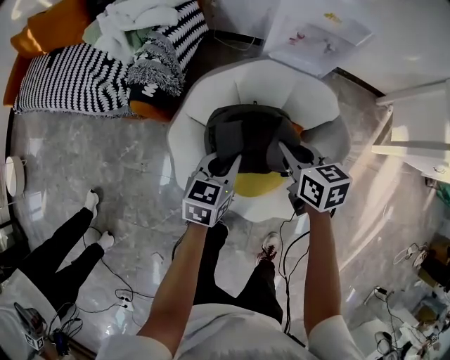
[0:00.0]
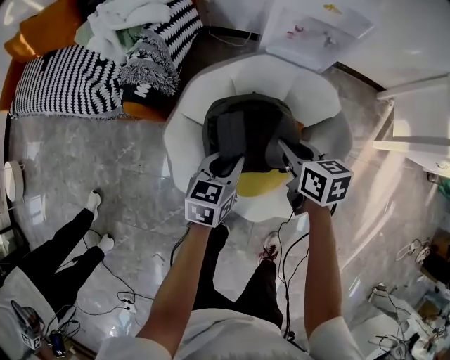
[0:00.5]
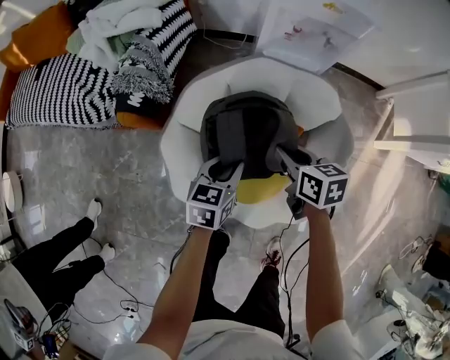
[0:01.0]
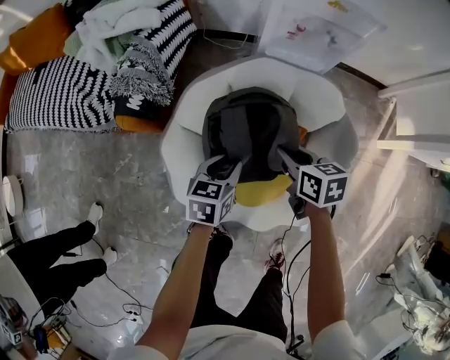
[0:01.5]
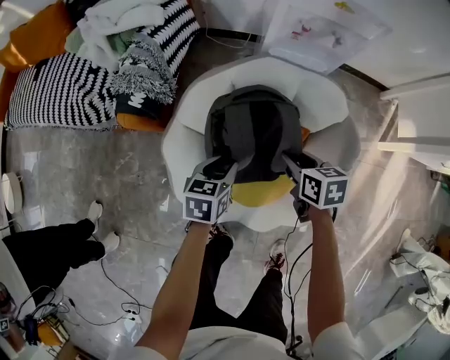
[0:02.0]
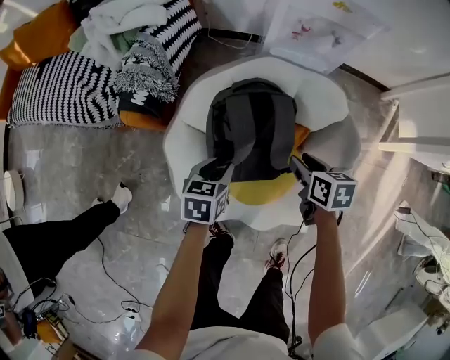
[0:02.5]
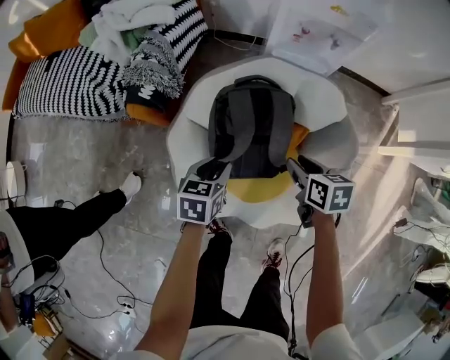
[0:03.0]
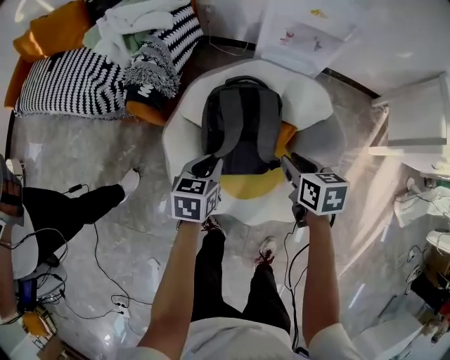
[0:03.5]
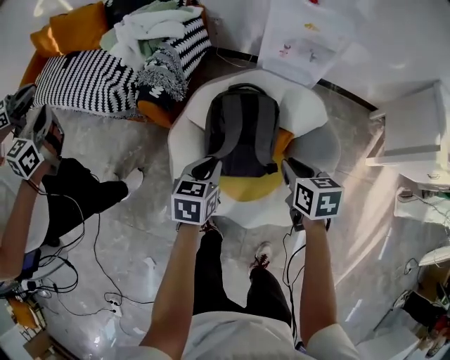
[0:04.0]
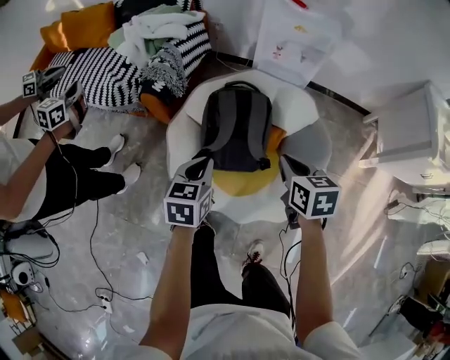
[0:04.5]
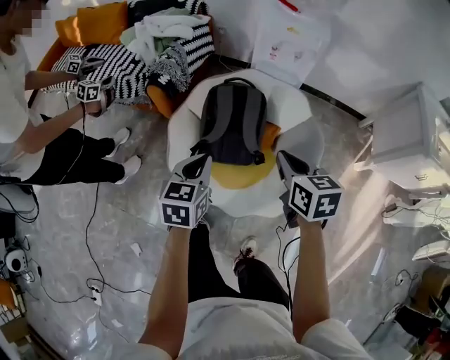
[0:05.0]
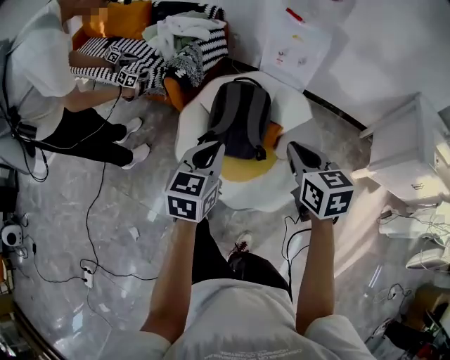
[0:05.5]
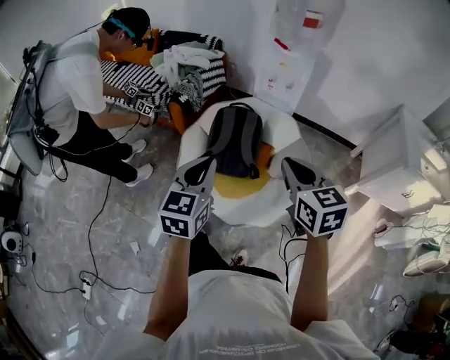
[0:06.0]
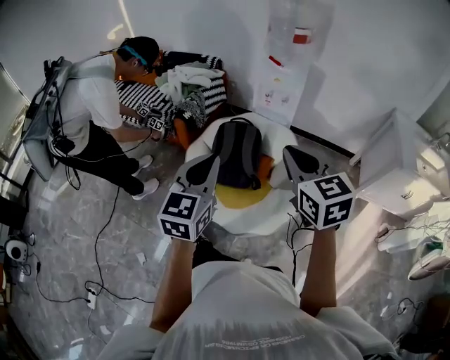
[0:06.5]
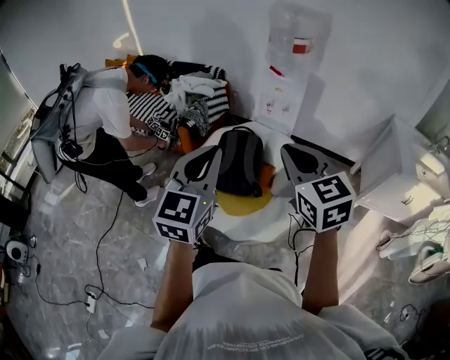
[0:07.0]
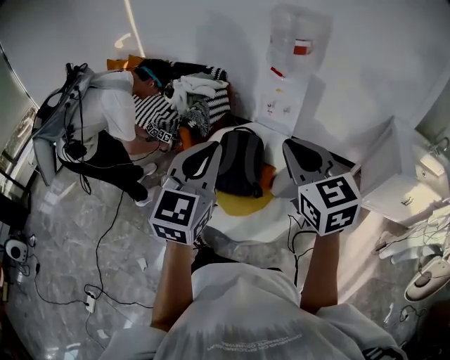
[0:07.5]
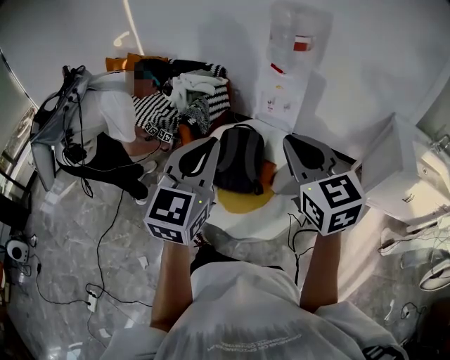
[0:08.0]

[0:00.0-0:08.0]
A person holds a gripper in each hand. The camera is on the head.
0:00.0 to 0:02.0: Both grippers move downward, roughly 10 cm. The right gripper opens its fingers. The left gripper opens its fingers.
0:02.0 to 0:04.0: Both grippers travel together upward and backward, approximately 15 cm. The left gripper closes.
0:04.0 to 0:06.0: The two grippers go approximately 40 cm upward and backward. The left gripper turns by approximately 30 degrees, while the right gripper rotates roughly 30 degrees.
0:06.0 to 0:08.0: Both grippers move upward, some 20 cm. The right gripper swivels about 20 degrees. The left gripper rotates about 20 degrees.

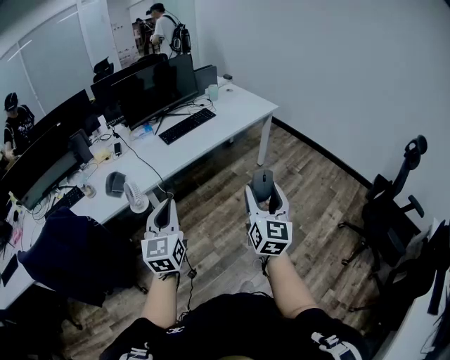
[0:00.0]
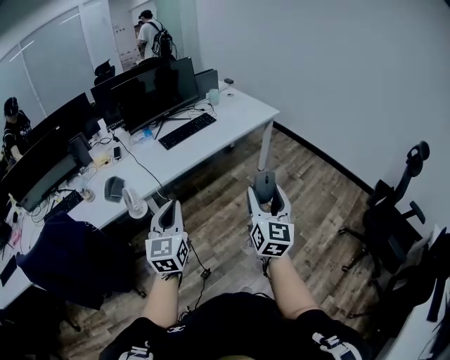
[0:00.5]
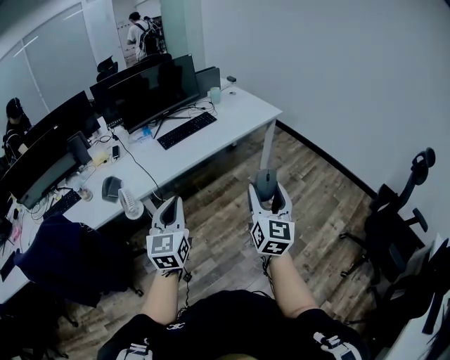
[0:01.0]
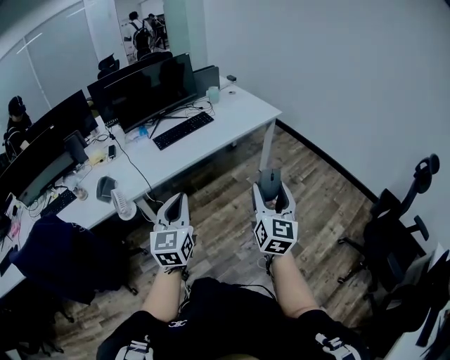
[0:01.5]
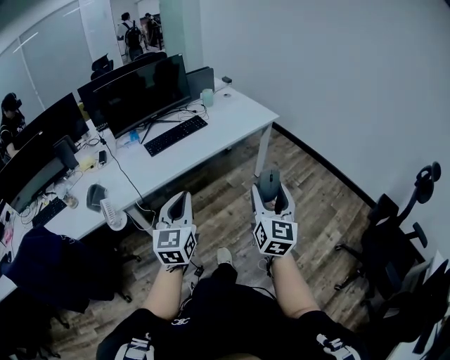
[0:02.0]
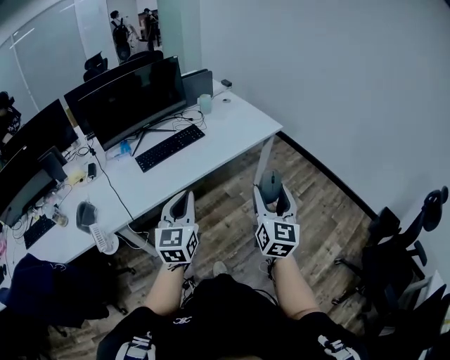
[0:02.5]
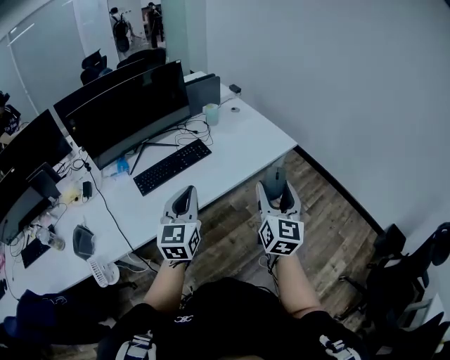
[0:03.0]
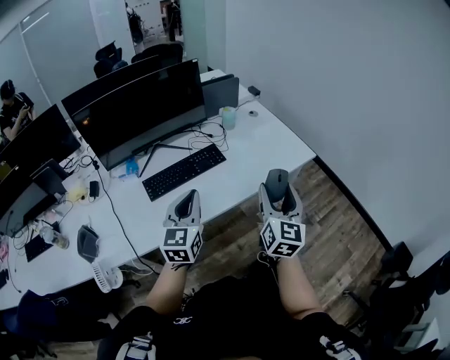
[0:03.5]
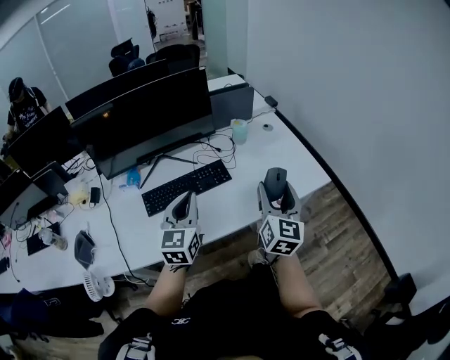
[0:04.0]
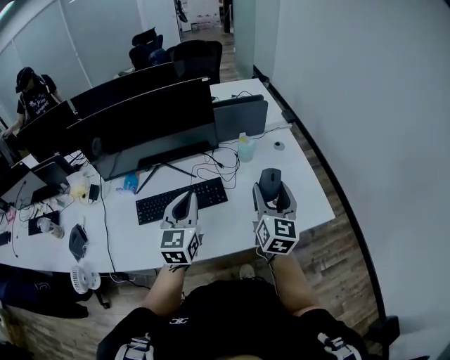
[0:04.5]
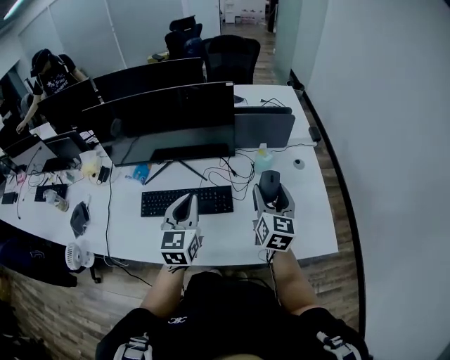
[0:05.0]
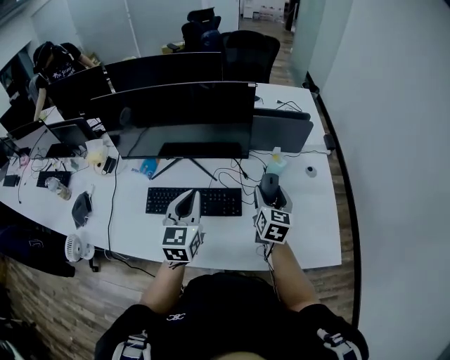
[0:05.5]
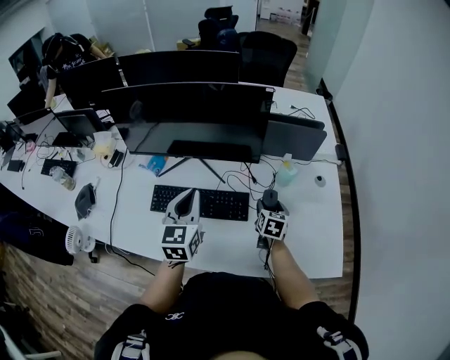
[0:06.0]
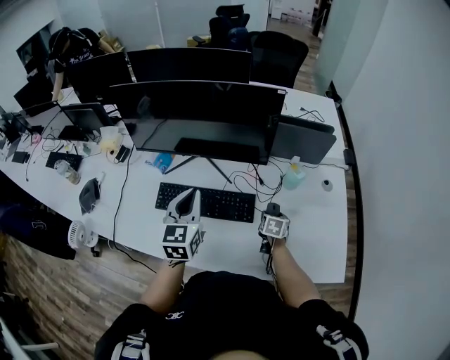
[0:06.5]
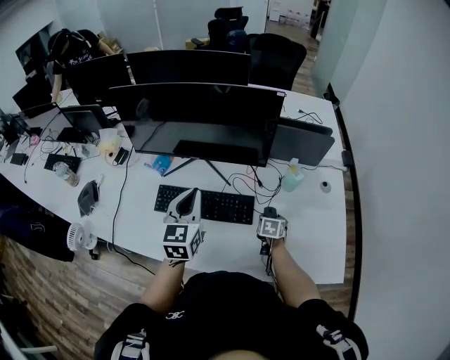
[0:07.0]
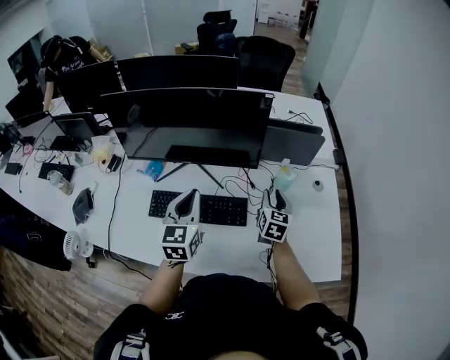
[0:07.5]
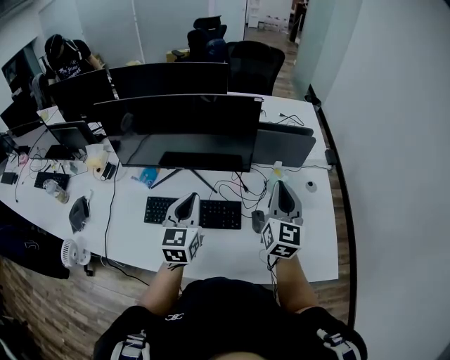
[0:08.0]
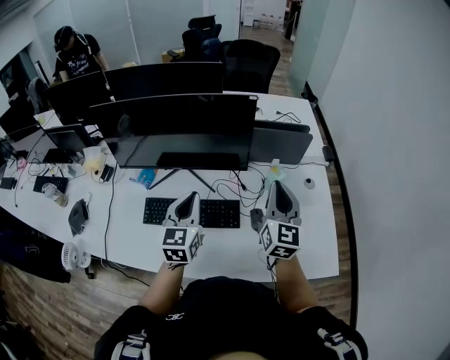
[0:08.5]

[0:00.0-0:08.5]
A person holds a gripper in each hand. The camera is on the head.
0:00.0 to 0:02.0: Both grippers travel together forward and to the right, about 25 cm.
0:02.0 to 0:04.0: Both grippers are carried forward, some 60 cm.
0:04.0 to 0:06.5: The left gripper moves about 20 cm, and rotates roughly 30 degrees; the right gripper ends up about 50 cm from where it was, and tilts its fingers some 50 degrees downward.
0:06.5 to 0:08.5: The right gripper travels upward by about 35 cm, tilts its fingers some 50 degrees upward, and closes up. The left gripper changes place by roughly 5 cm.

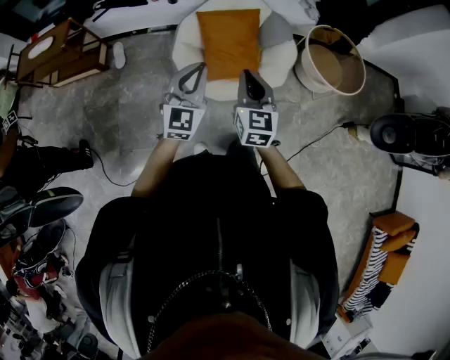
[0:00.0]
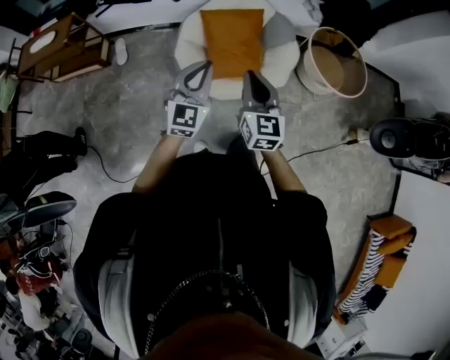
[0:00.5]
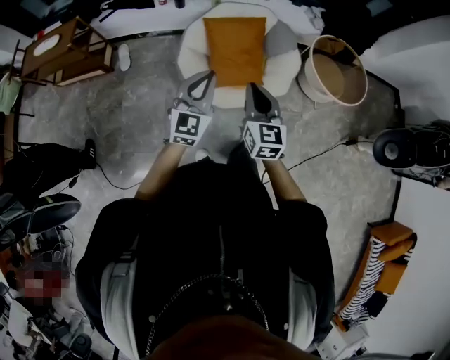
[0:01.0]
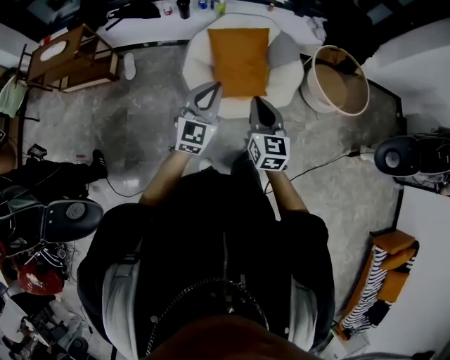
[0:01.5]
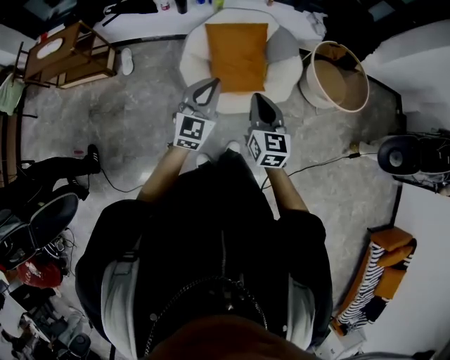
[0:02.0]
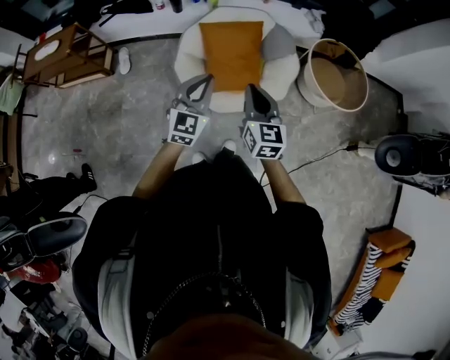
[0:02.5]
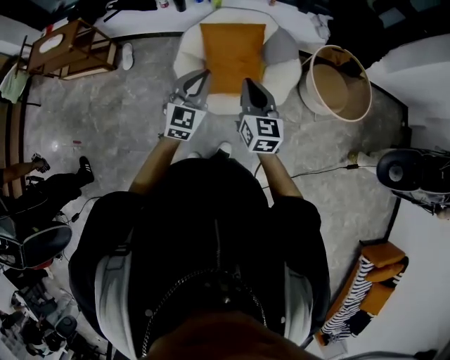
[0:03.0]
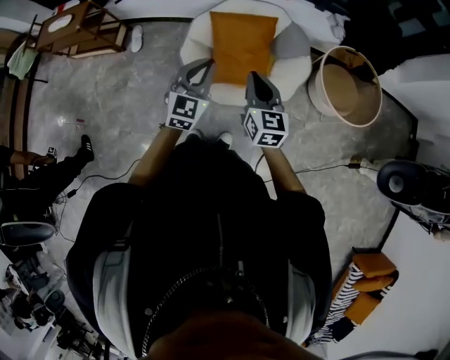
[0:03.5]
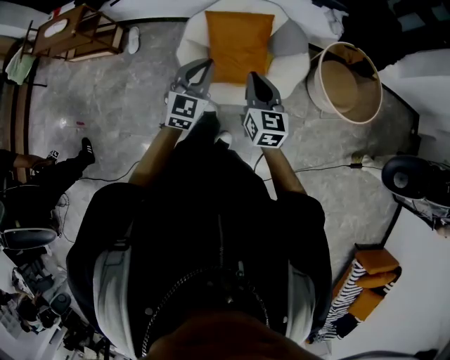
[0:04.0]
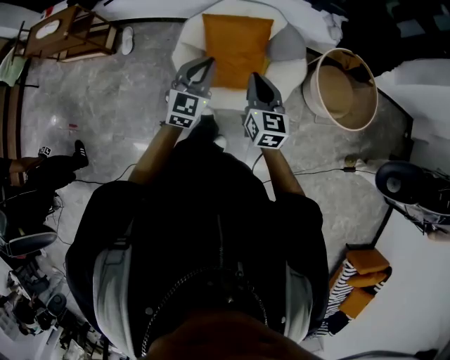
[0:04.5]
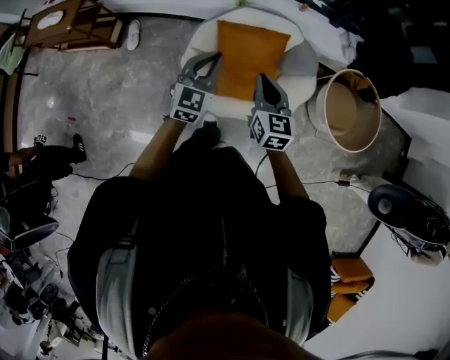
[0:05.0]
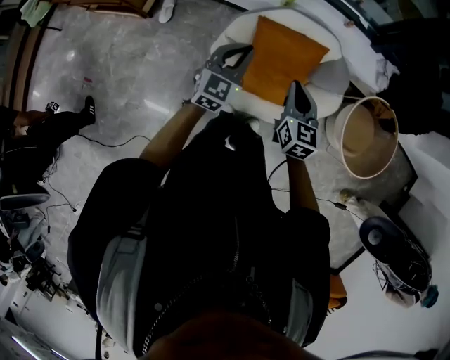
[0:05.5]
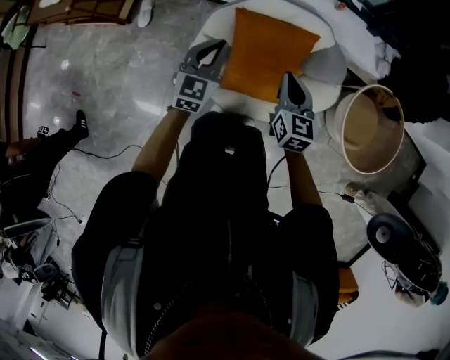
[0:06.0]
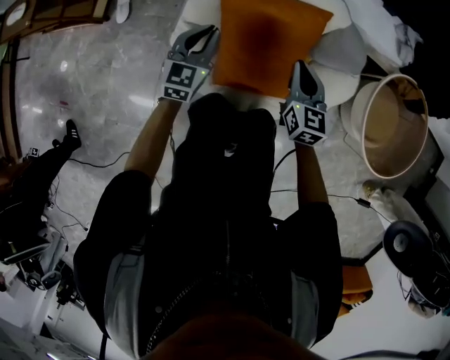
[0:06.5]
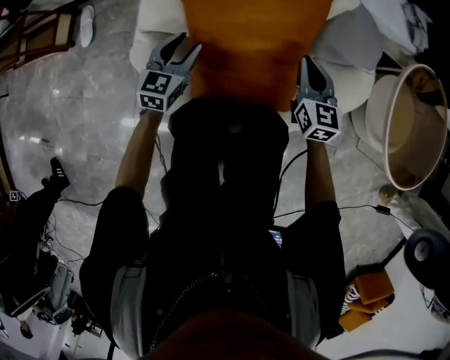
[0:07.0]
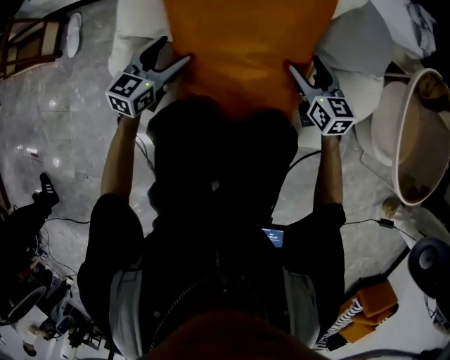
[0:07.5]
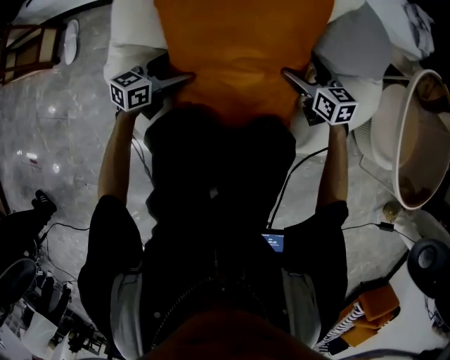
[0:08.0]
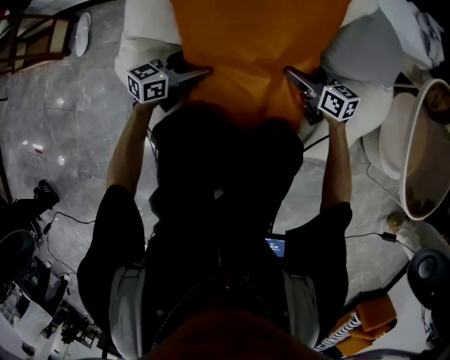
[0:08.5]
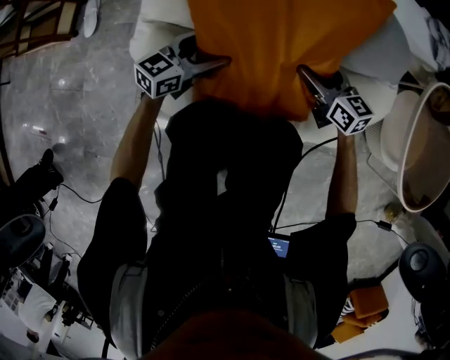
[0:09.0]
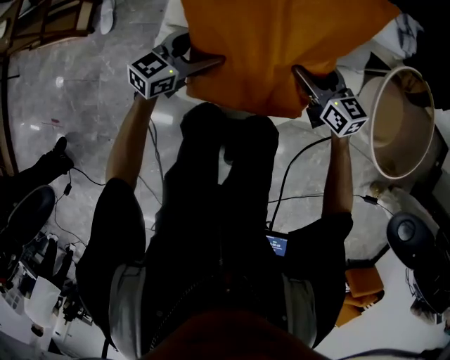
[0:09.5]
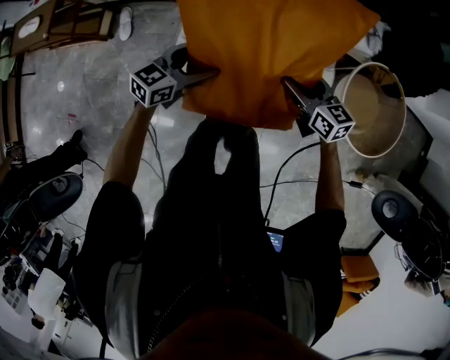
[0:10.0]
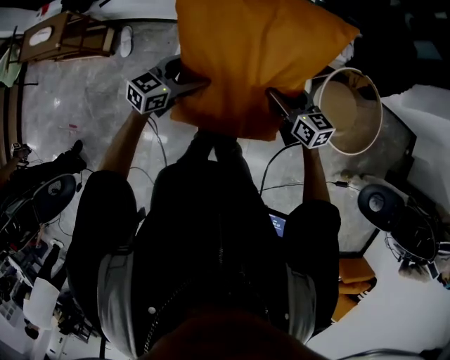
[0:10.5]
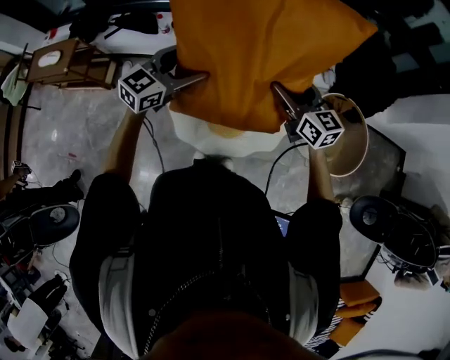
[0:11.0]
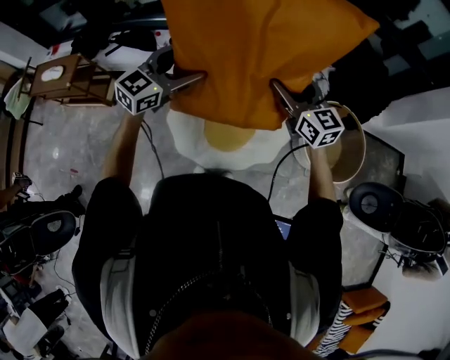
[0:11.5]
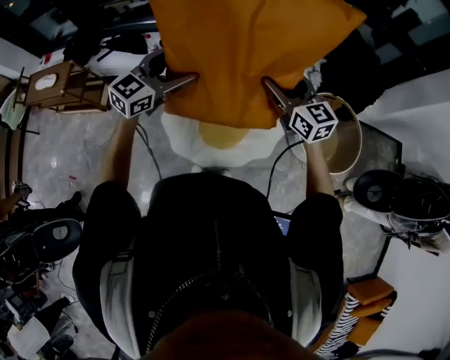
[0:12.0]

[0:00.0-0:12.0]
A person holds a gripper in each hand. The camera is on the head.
0:00.0 to 0:02.0: The grippers stay close to where they were, moving slightly.
0:02.0 to 0:04.0: The two grippers go about 15 cm forward and to the right.
0:04.0 to 0:06.0: The two grippers go approximately 30 cm forward and downward.
0:06.0 to 0:08.0: Both grippers travel together downward, some 50 cm. The left gripper changes its angle by about 40 degrees, and opens. The right gripper opens.
0:08.0 to 0:10.0: The grippers both shift upward by about 50 cm.
0:10.0 to 0:12.0: Both grippers move upward, some 30 cm. The right gripper turns by approximately 30 degrees. The left gripper changes its angle by approximately 30 degrees.
